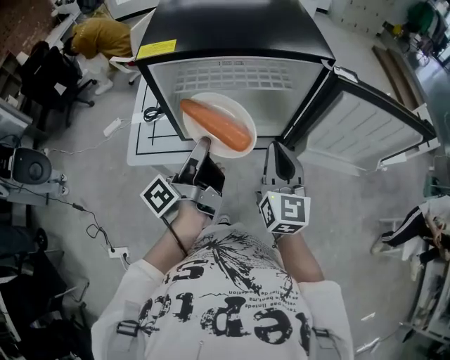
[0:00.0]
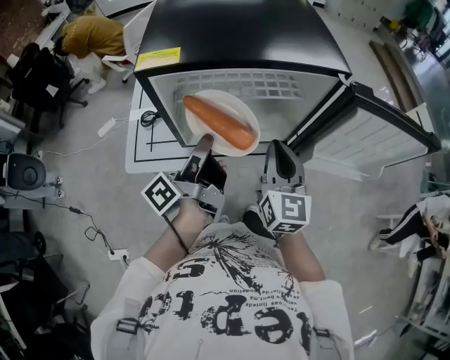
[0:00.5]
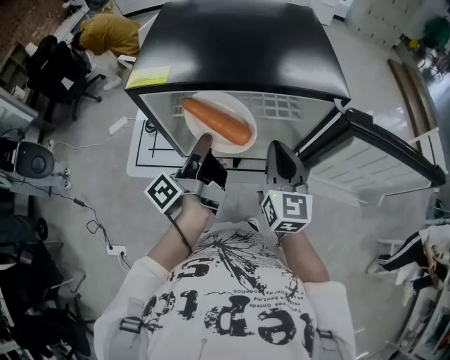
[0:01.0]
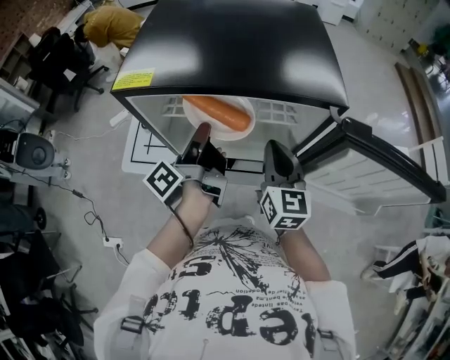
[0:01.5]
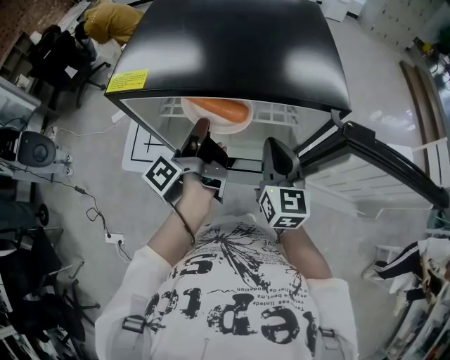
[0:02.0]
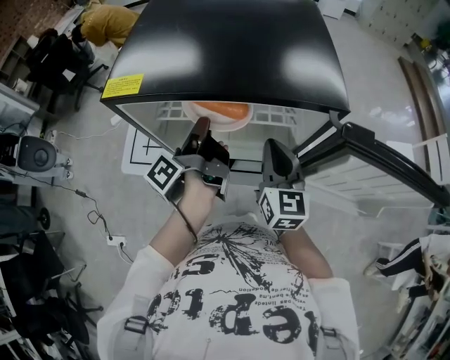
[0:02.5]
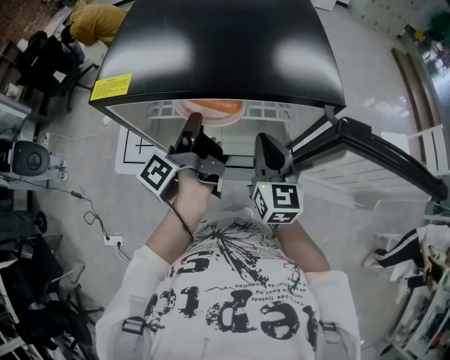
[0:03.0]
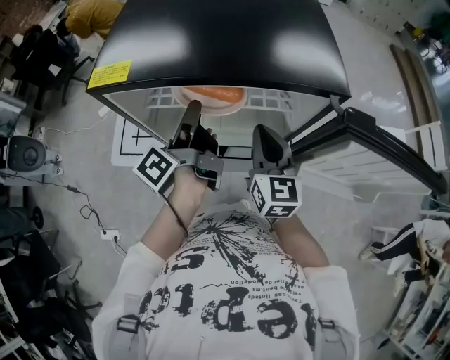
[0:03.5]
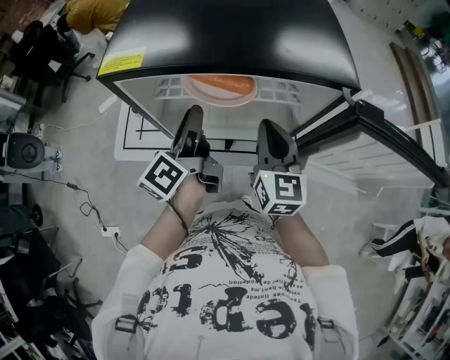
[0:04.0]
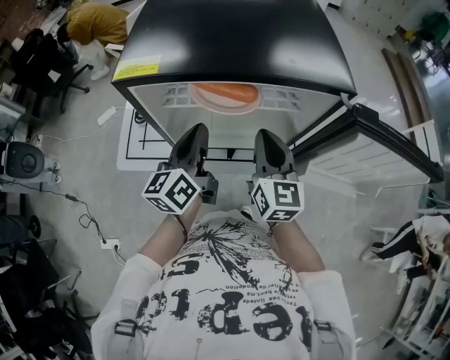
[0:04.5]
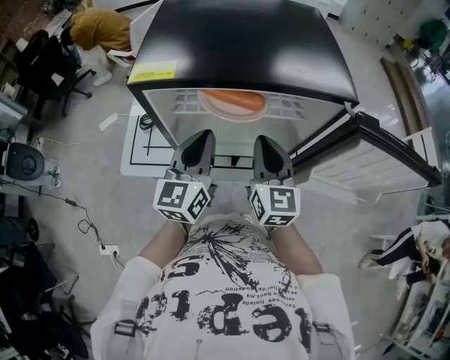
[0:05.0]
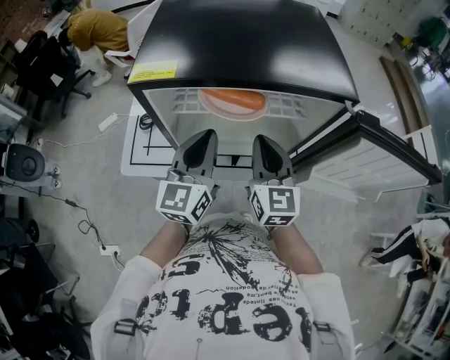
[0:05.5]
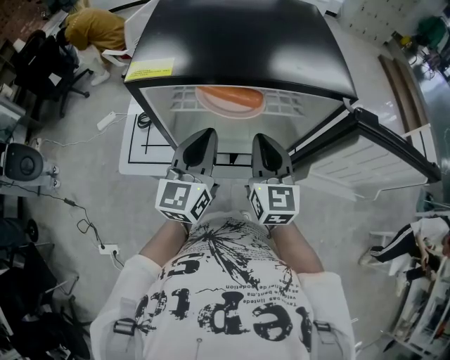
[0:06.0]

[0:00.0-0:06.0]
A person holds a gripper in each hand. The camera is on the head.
0:00.0 to 0:02.0: The right gripper moves some 15 cm.

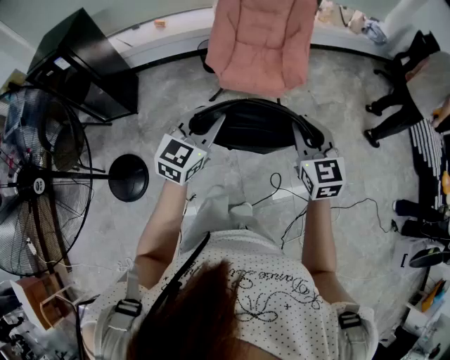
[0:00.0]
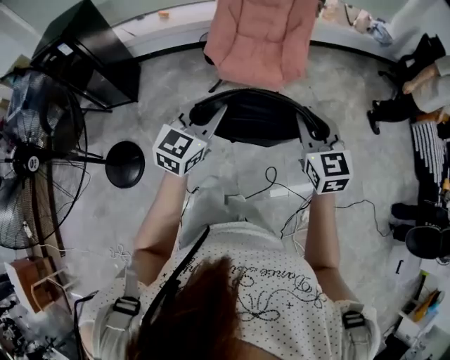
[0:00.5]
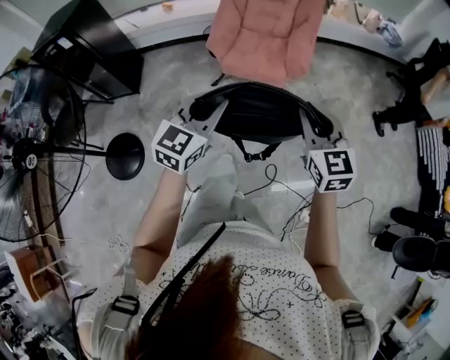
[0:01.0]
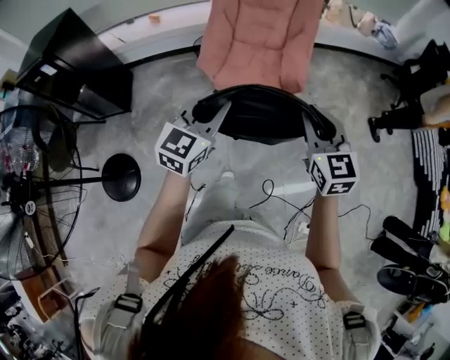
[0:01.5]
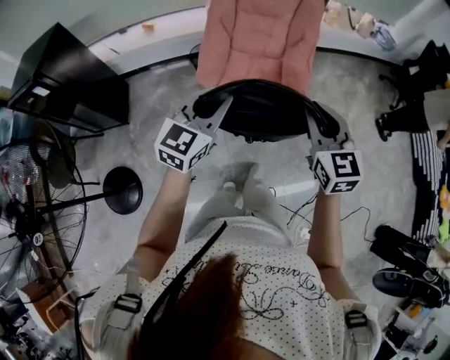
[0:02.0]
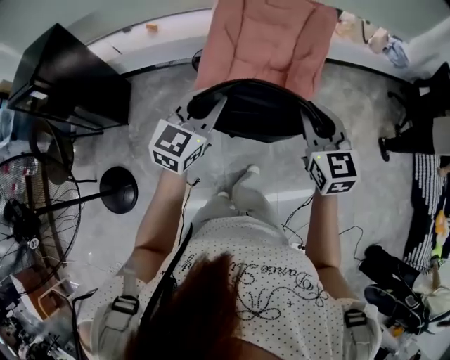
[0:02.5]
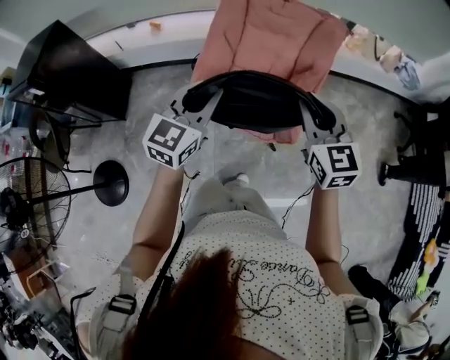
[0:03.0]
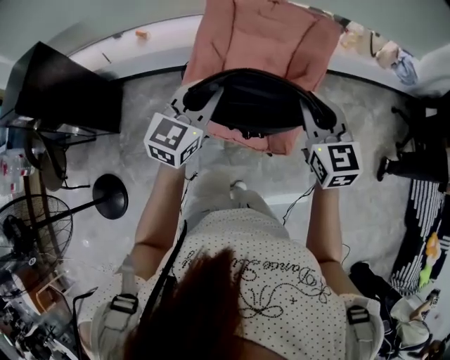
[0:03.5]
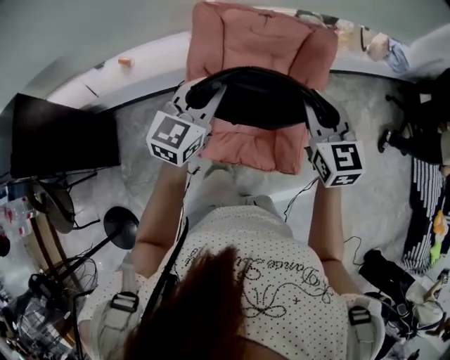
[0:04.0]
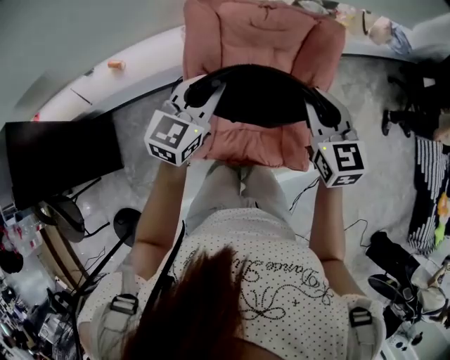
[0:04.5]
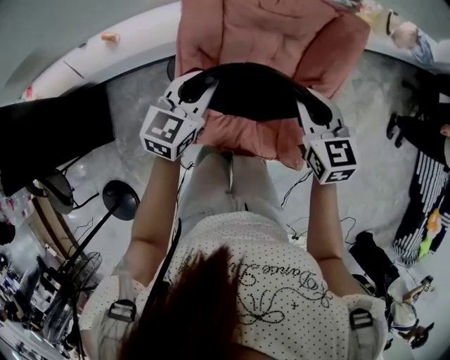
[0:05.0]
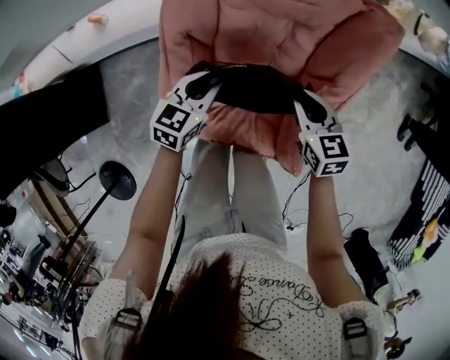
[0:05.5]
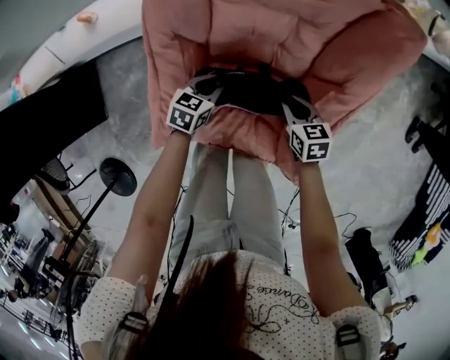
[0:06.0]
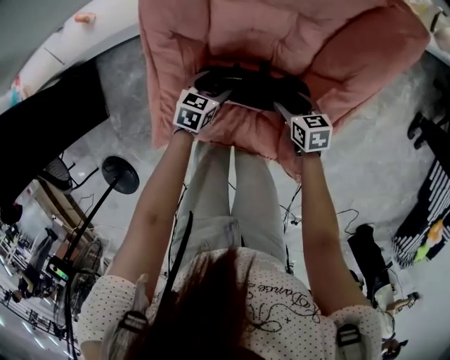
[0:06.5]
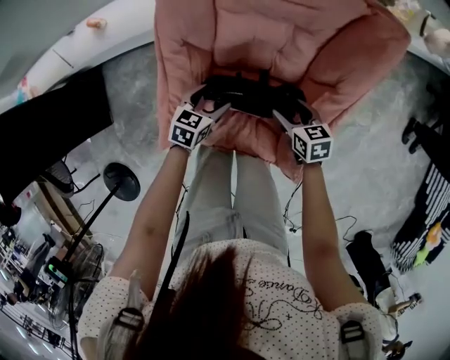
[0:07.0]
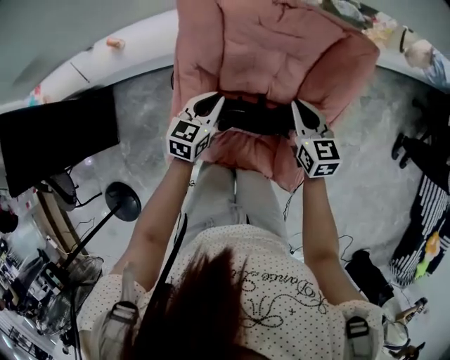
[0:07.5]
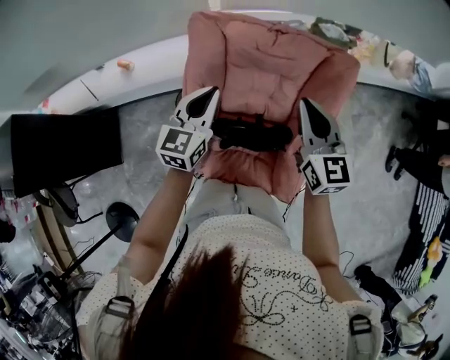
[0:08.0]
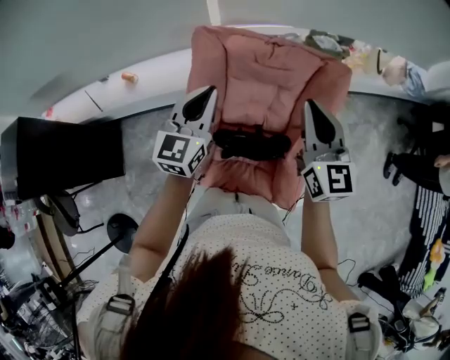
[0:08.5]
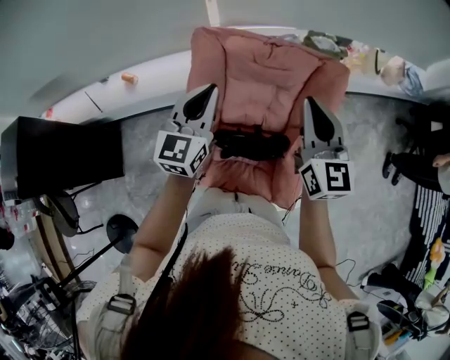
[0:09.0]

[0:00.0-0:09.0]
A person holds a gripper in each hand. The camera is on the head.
0:00.0 to 0:02.0: Both grippers travel together forward, some 20 cm.
0:02.0 to 0:04.5: The pair of grippers is taken forward, some 50 cm.
0:04.5 to 0:07.0: The two grippers go roughly 40 cm downward. The right gripper changes its angle by some 40 degrees, and opens; the left gripper tips its fingers downward by approximately 30 degrees, and opens its fingers.
0:07.0 to 0:09.0: Both grippers travel together upward, some 40 cm. The left gripper tilts its fingers some 40 degrees upward, and closes its fingers. Meanwhile the right gripper tilts its fingers about 40 degrees upward, and closes its fingers.

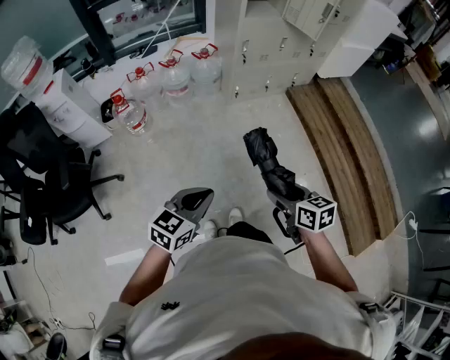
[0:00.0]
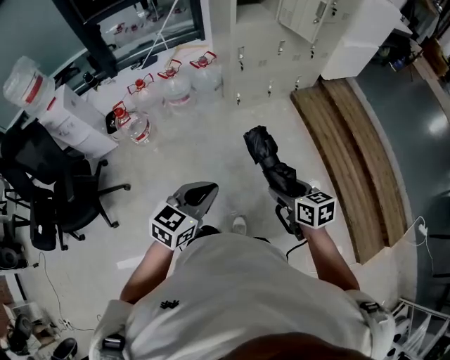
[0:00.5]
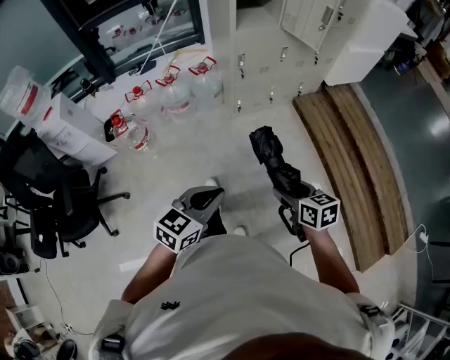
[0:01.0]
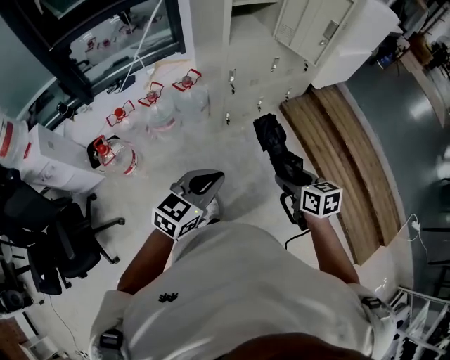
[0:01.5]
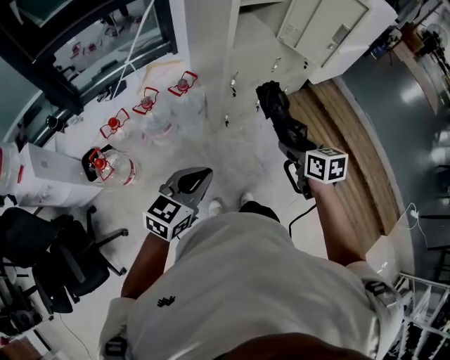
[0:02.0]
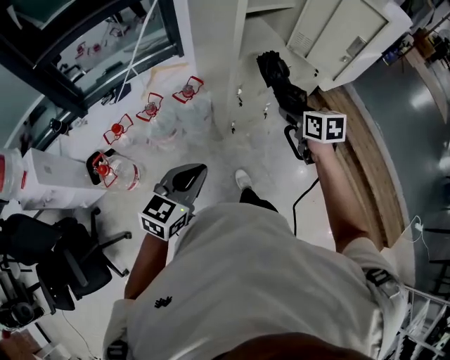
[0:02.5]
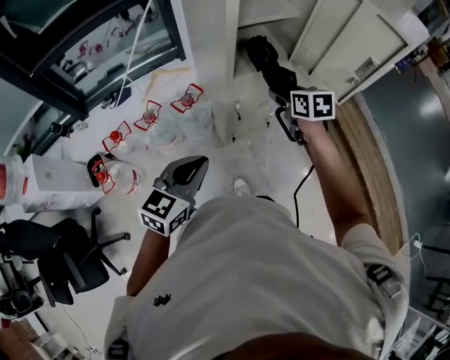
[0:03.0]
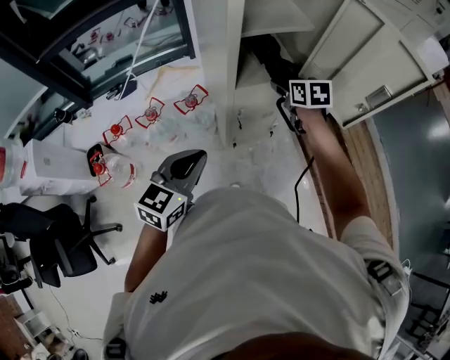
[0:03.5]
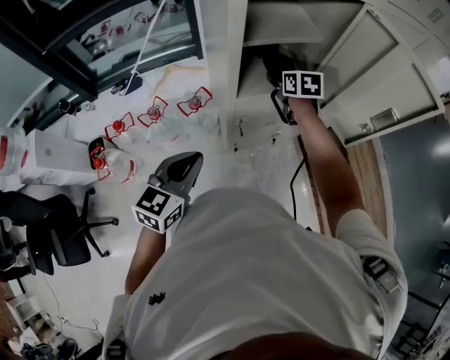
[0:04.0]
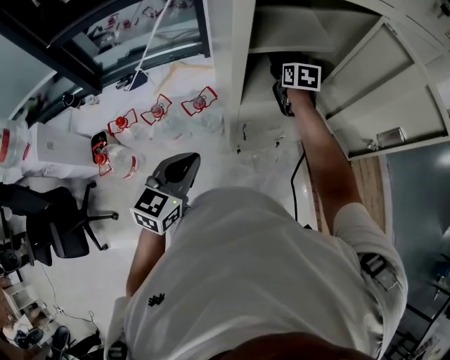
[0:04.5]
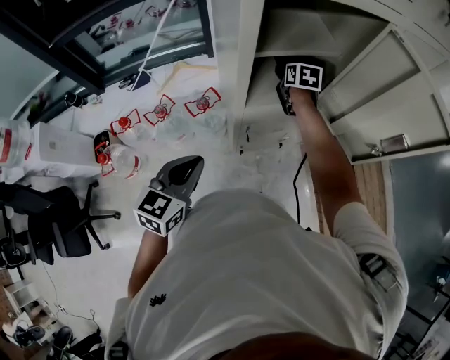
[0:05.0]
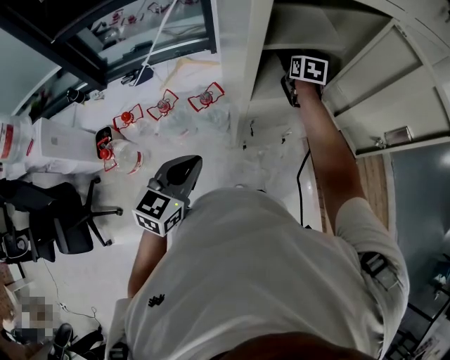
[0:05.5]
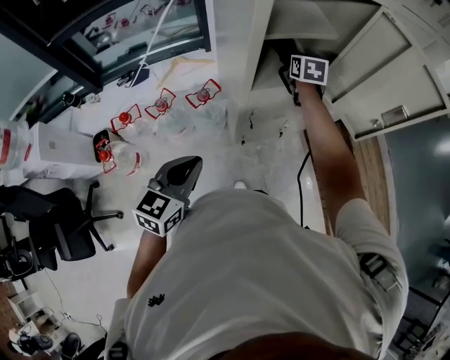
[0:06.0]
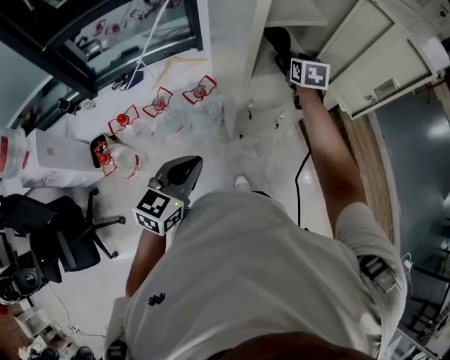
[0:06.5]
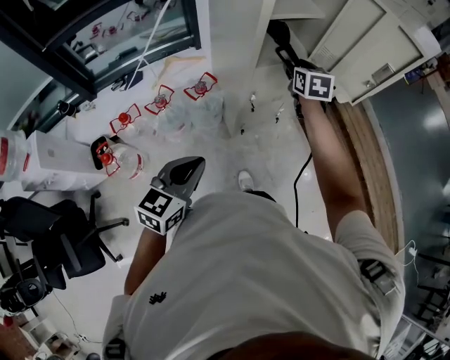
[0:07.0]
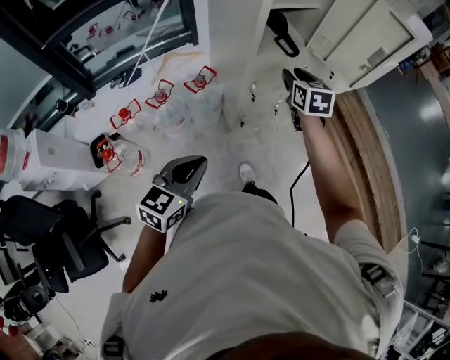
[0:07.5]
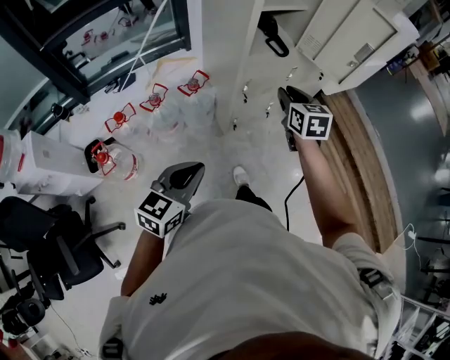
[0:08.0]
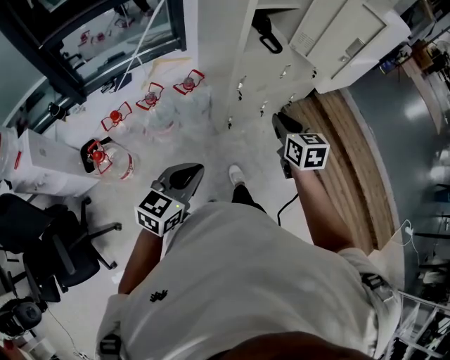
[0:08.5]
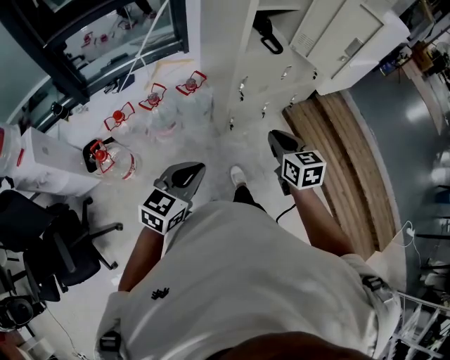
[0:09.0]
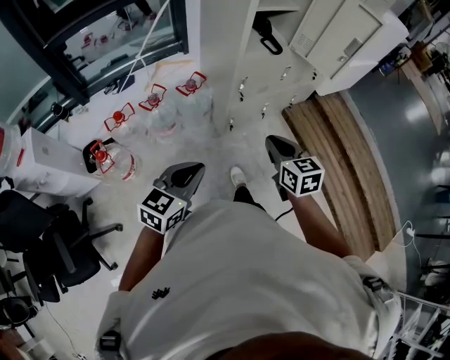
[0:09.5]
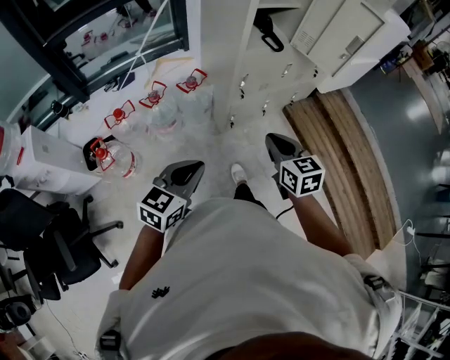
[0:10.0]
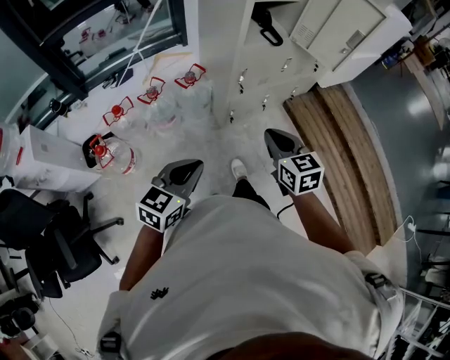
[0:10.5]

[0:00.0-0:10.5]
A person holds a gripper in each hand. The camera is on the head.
0:00.0 to 0:02.0: Both grippers are carried forward, approximately 40 cm.
0:02.0 to 0:04.0: The left gripper heads forward, covering some 30 cm, and swivels approximately 20 degrees. Meanwhile the right gripper goes approximately 50 cm forward.
0:04.0 to 0:06.5: The right gripper goes forward and returns, approximately 10 cm each way. Meanwhile the left gripper moves backward and to the left, approximately 10 cm.
0:06.5 to 0:08.5: The left gripper goes roughly 15 cm backward. The right gripper moves backward, some 40 cm, and closes up.
0:08.5 to 0:10.5: The right gripper shifts roughly 10 cm backward.

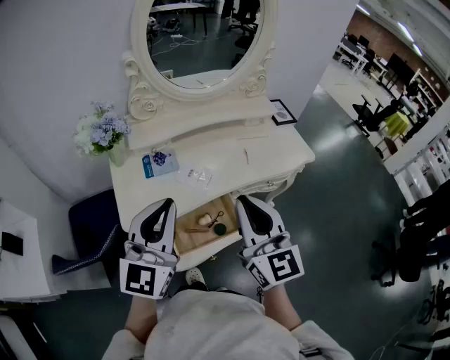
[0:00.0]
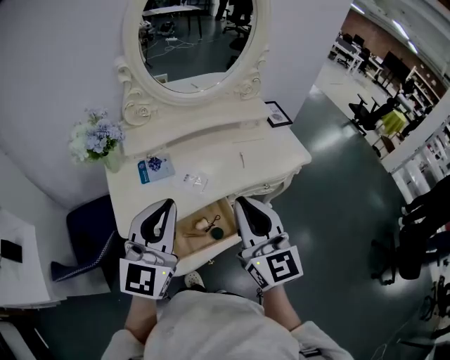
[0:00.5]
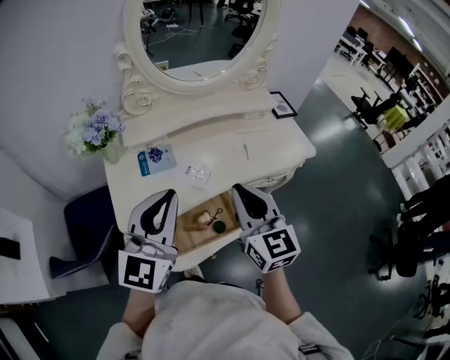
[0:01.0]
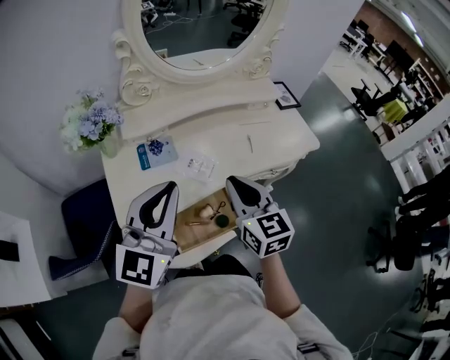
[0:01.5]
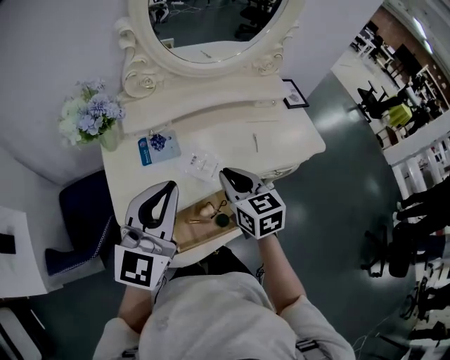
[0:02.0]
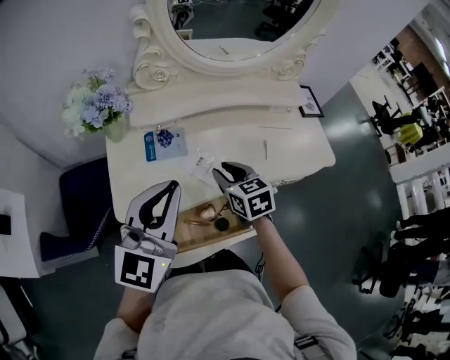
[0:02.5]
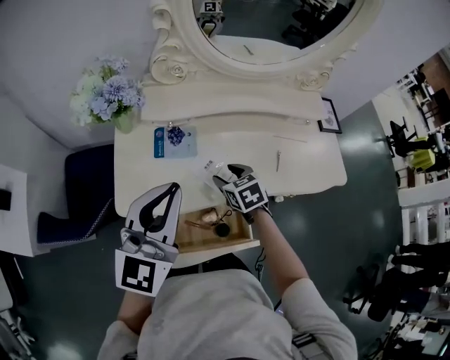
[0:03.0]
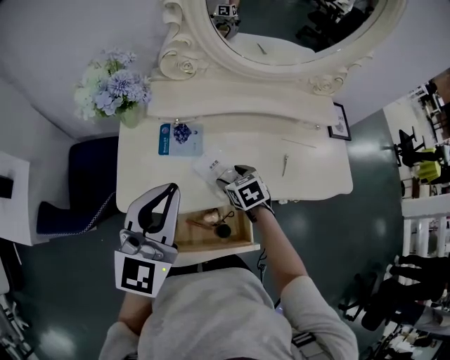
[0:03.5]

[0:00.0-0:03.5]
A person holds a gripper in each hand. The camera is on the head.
0:00.0 to 0:02.0: The left gripper shifts some 5 cm forward. Meanwhile the right gripper shifts roughly 20 cm downward and forward, and changes its angle by some 30 degrees.
0:02.0 to 0:03.5: The right gripper is displaced downward and forward by roughly 20 cm, tilts its fingers about 30 degrees downward, and opens its fingers.
